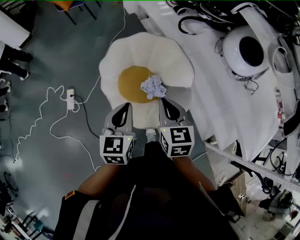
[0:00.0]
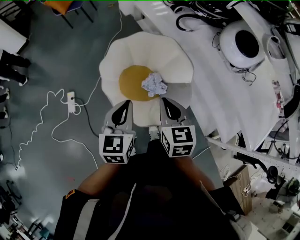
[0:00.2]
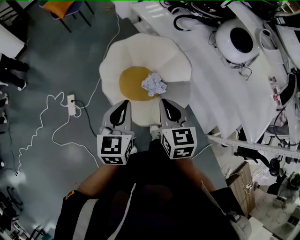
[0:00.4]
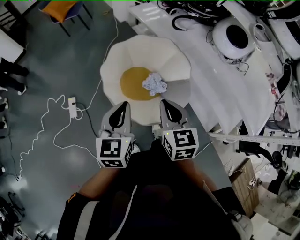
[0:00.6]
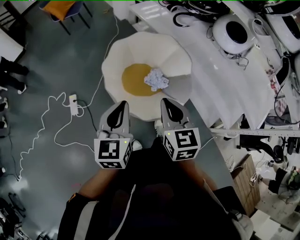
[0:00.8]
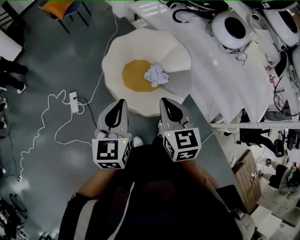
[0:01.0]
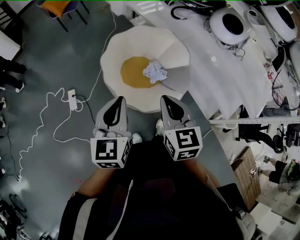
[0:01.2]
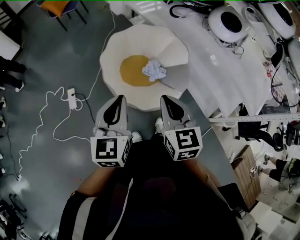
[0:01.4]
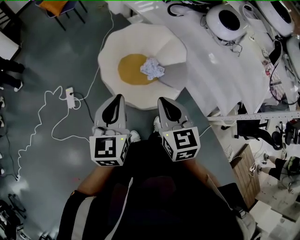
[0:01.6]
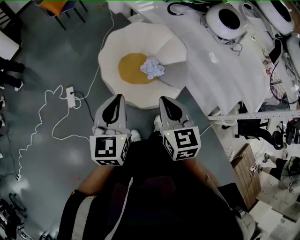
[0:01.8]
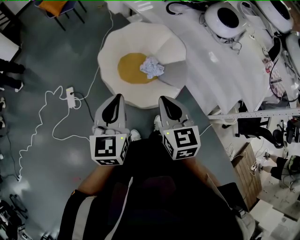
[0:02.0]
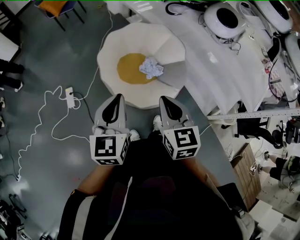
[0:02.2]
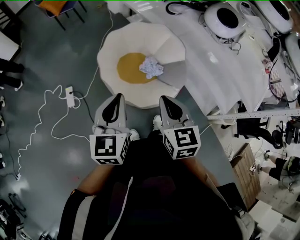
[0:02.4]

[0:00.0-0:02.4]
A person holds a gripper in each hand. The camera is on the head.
0:00.0 to 0:01.2: The grippers both shift backward, to the left and upward by about 25 cm.
0:01.2 to 0:02.4: The grippers make only small movements.

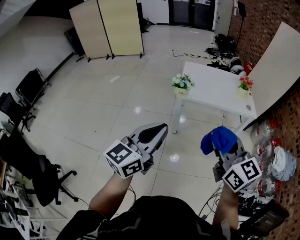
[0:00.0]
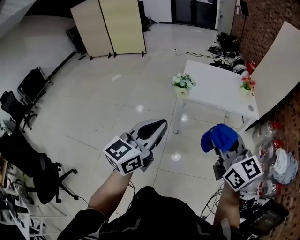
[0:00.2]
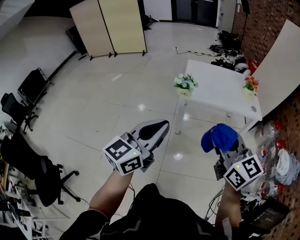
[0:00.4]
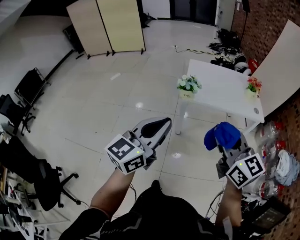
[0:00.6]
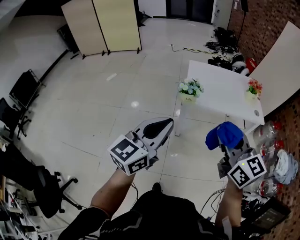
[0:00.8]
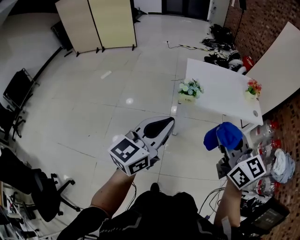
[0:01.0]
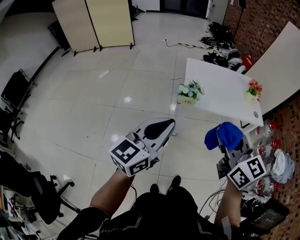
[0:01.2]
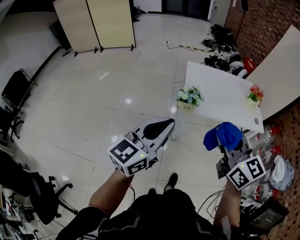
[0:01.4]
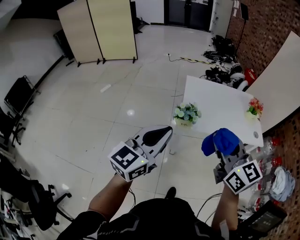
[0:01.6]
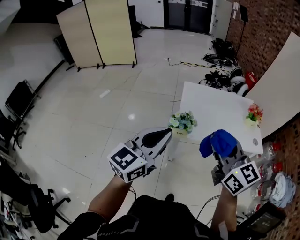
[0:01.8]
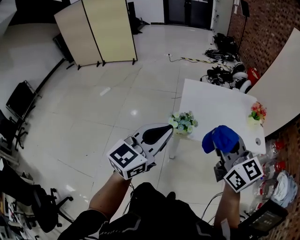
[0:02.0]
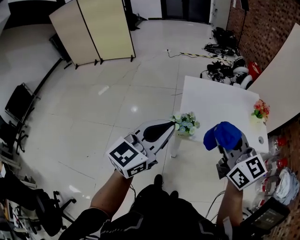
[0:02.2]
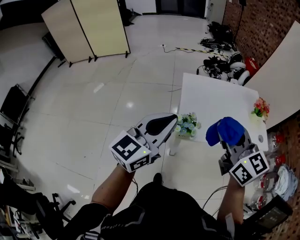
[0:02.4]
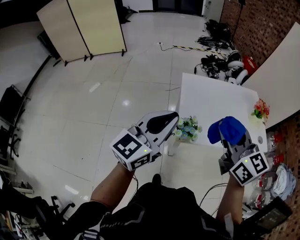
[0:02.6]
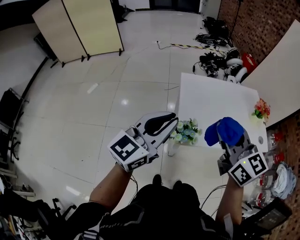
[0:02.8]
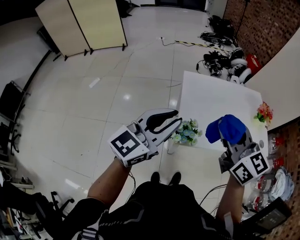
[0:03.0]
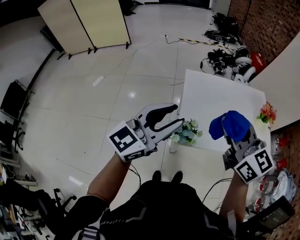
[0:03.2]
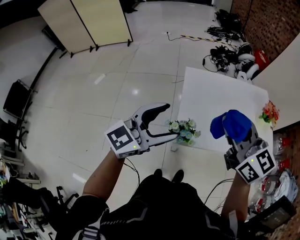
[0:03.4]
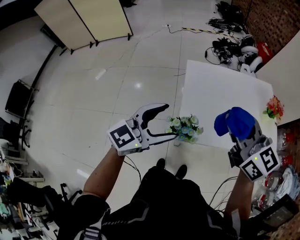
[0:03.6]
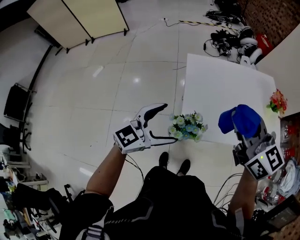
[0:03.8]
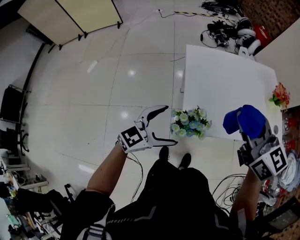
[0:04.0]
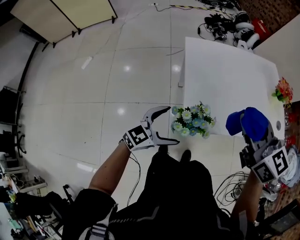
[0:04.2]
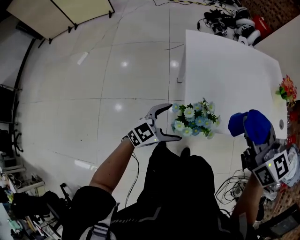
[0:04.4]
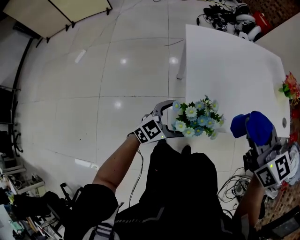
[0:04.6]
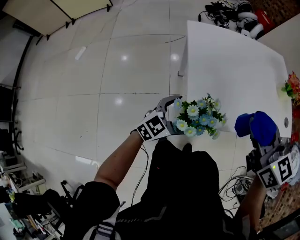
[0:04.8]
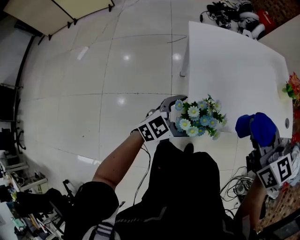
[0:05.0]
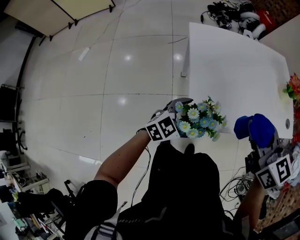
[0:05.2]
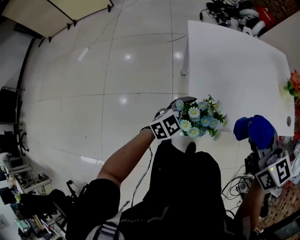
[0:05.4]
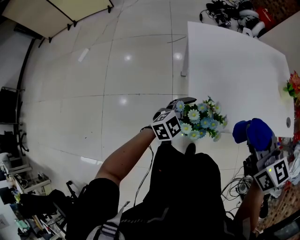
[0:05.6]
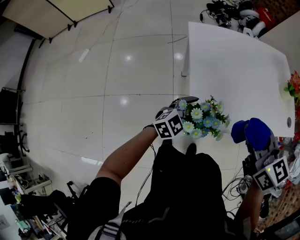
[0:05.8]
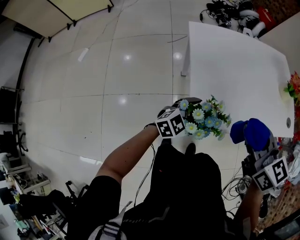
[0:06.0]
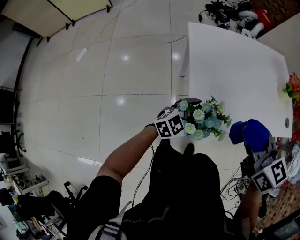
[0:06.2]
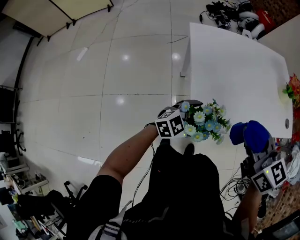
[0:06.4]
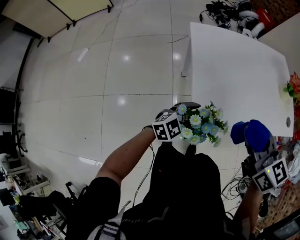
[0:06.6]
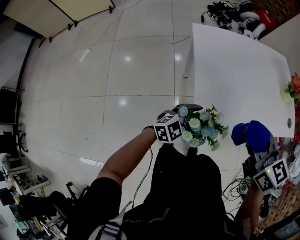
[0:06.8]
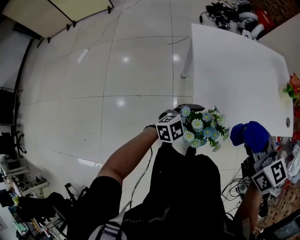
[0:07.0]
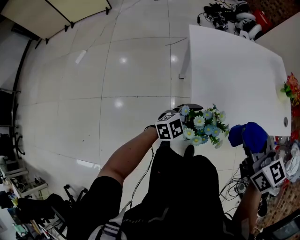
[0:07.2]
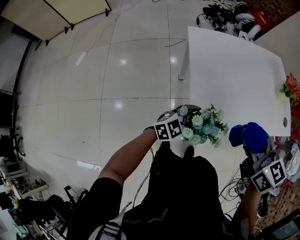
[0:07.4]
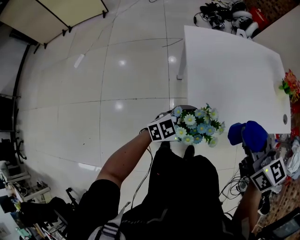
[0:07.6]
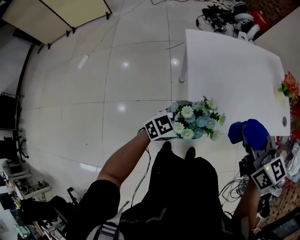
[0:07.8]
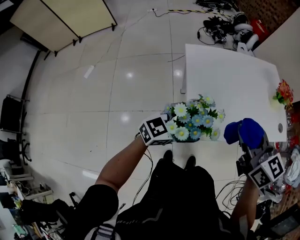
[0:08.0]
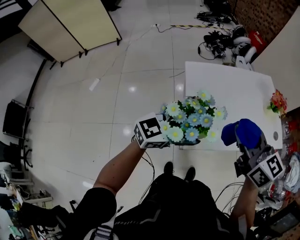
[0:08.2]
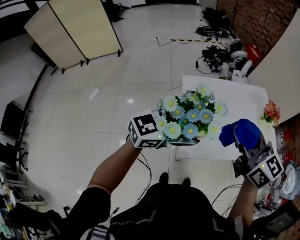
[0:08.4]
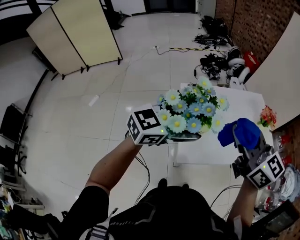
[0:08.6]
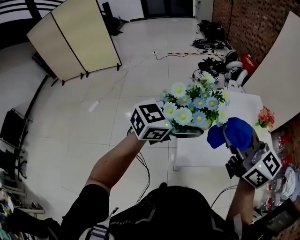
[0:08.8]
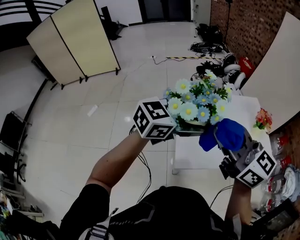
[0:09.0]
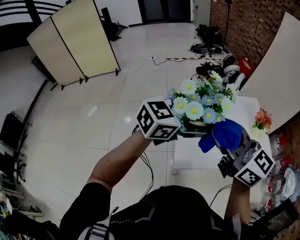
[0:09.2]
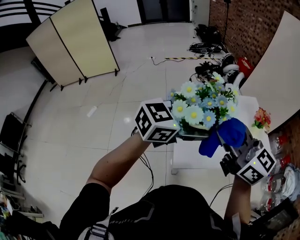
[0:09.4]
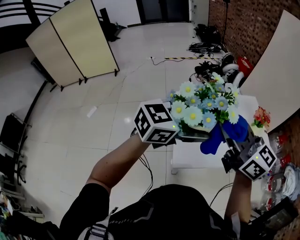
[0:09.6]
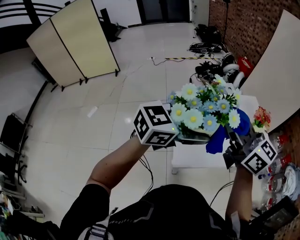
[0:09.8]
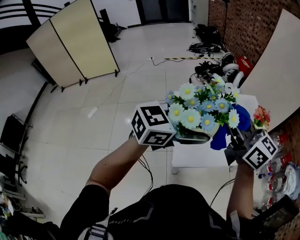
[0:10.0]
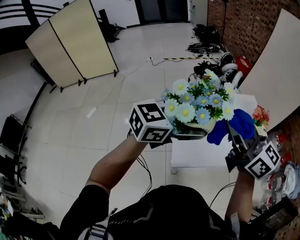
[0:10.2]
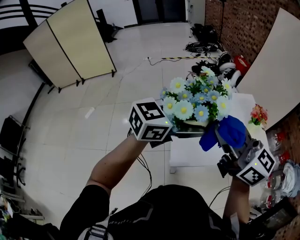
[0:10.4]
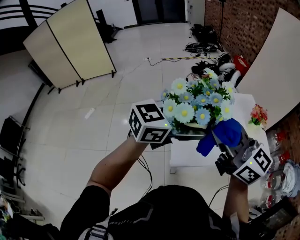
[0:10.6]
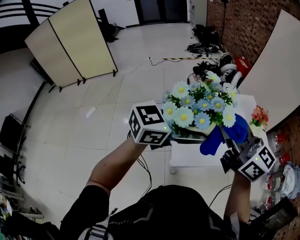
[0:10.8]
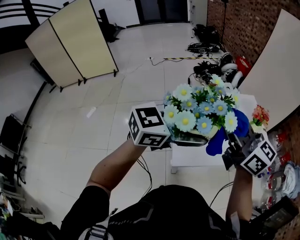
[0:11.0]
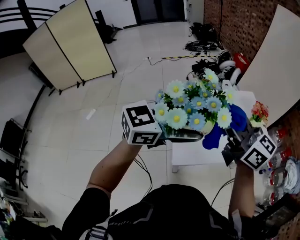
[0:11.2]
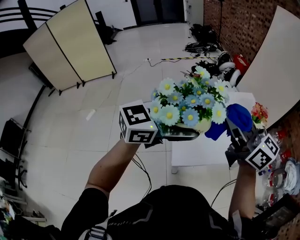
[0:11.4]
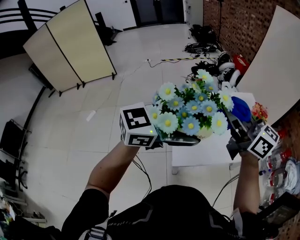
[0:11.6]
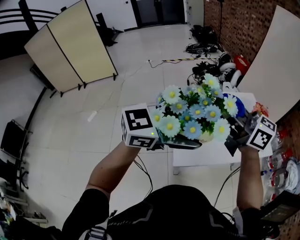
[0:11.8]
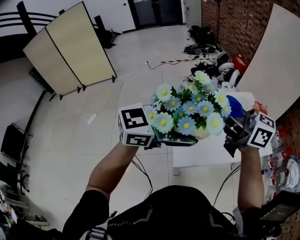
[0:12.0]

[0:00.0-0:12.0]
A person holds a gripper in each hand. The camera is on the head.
0:00.0 to 0:01.6: The grippers both shift forward by about 30 cm.
0:01.6 to 0:03.0: Both grippers travel together forward, roughly 25 cm.
0:03.0 to 0:04.4: The right gripper heads downward and forward, covering roughly 15 cm. The left gripper moves downward, approximately 35 cm, turns by some 30 degrees, and opens up.
0:04.4 to 0:06.0: The right gripper goes some 5 cm downward. Meanwhile the left gripper travels to the right and forward by approximately 10 cm.
0:06.0 to 0:07.6: There are only small adjustments of the grippers.
0:07.6 to 0:09.0: The right gripper heads upward, covering about 25 cm, and turns by approximately 30 degrees, while the left gripper moves upward, some 40 cm.
0:10.4 to 0:12.0: The right gripper moves roughly 10 cm.

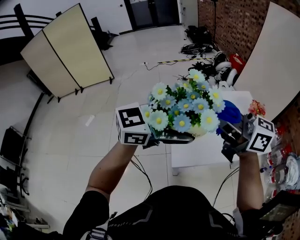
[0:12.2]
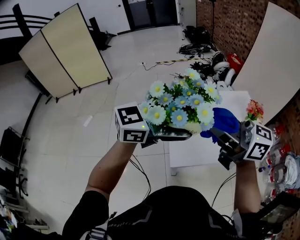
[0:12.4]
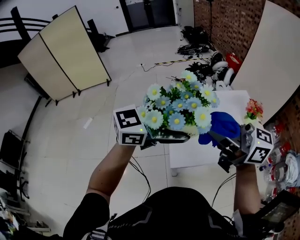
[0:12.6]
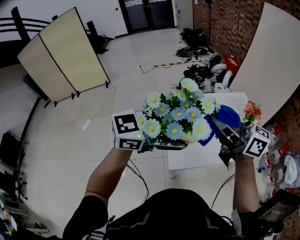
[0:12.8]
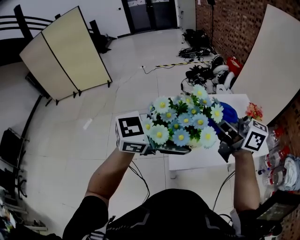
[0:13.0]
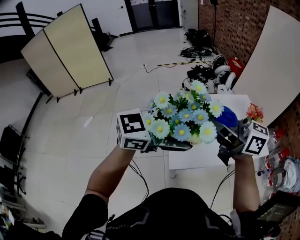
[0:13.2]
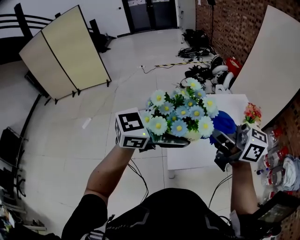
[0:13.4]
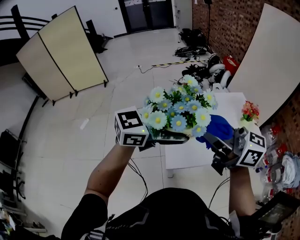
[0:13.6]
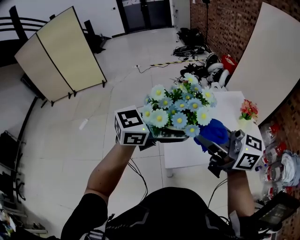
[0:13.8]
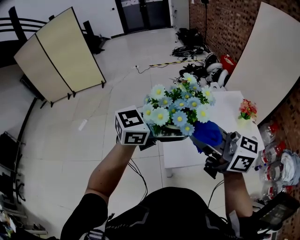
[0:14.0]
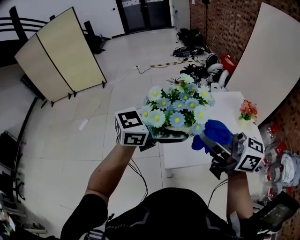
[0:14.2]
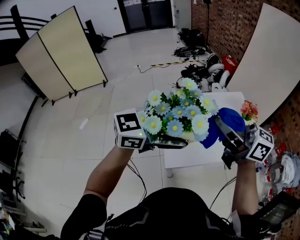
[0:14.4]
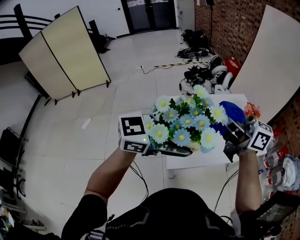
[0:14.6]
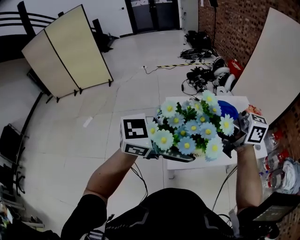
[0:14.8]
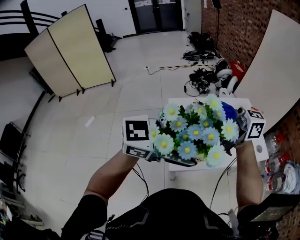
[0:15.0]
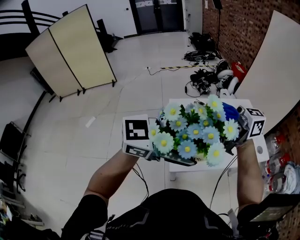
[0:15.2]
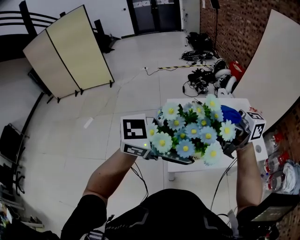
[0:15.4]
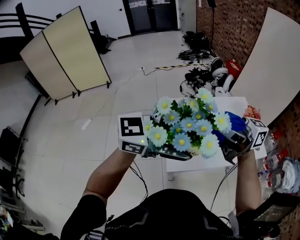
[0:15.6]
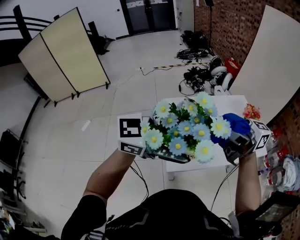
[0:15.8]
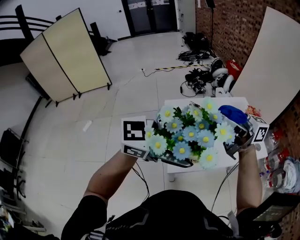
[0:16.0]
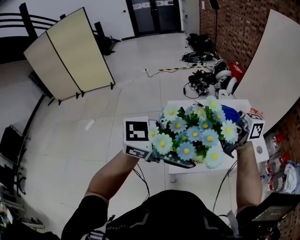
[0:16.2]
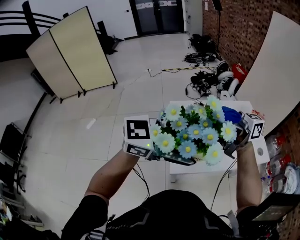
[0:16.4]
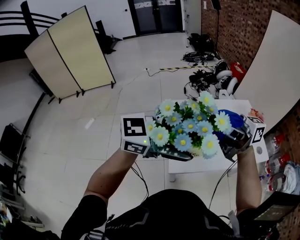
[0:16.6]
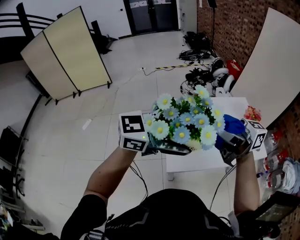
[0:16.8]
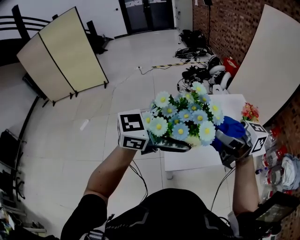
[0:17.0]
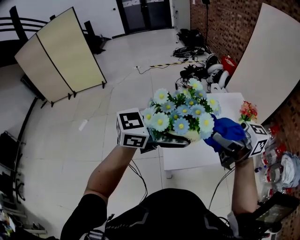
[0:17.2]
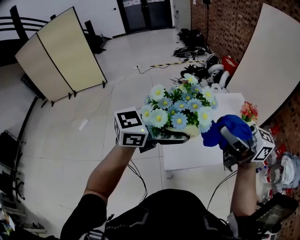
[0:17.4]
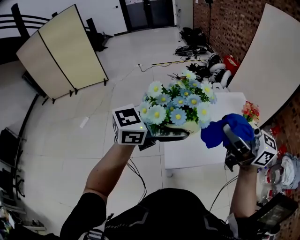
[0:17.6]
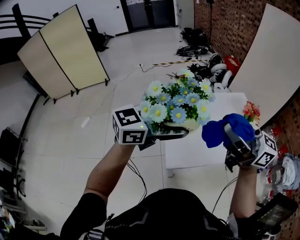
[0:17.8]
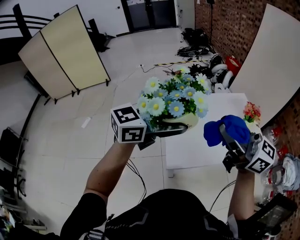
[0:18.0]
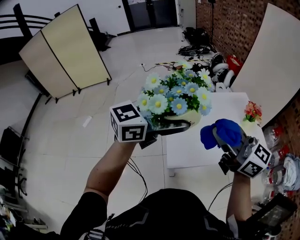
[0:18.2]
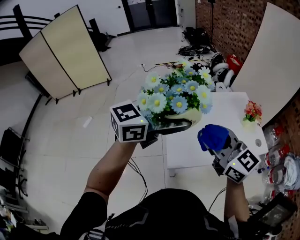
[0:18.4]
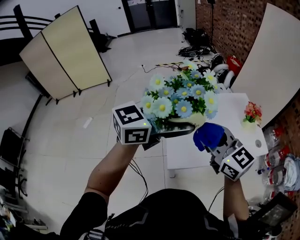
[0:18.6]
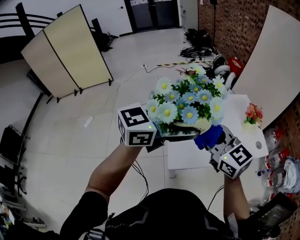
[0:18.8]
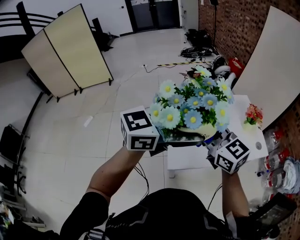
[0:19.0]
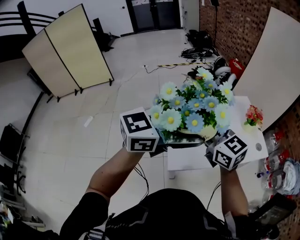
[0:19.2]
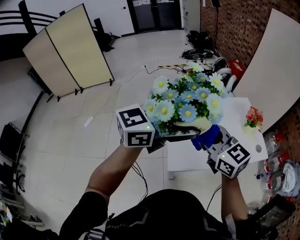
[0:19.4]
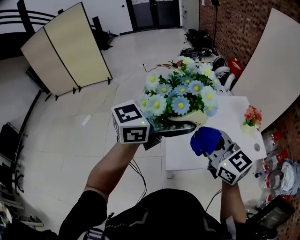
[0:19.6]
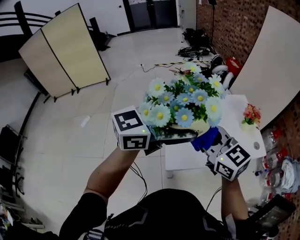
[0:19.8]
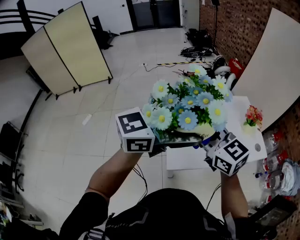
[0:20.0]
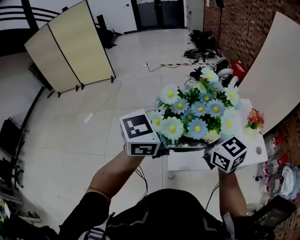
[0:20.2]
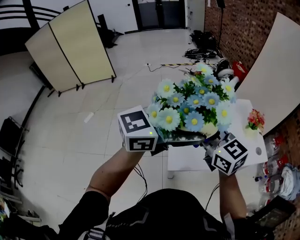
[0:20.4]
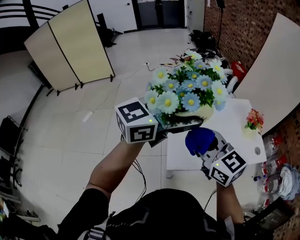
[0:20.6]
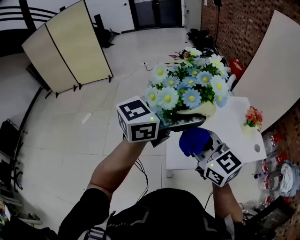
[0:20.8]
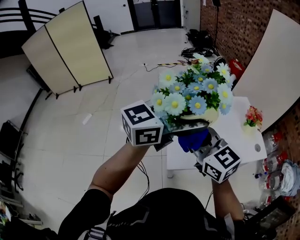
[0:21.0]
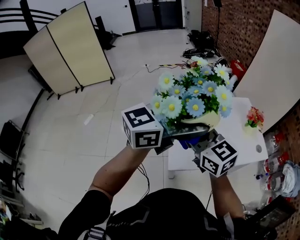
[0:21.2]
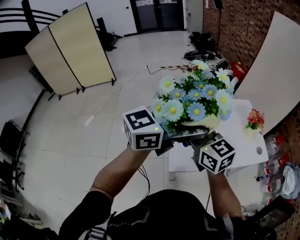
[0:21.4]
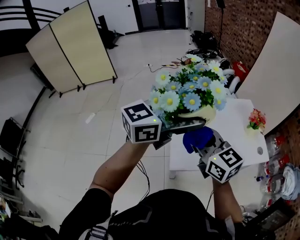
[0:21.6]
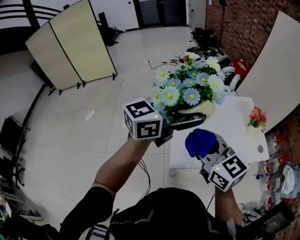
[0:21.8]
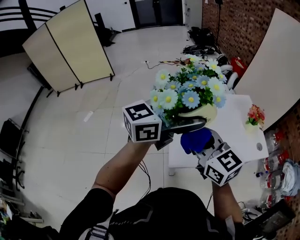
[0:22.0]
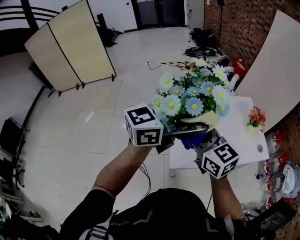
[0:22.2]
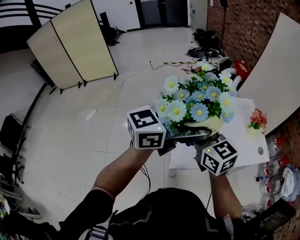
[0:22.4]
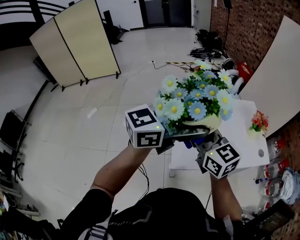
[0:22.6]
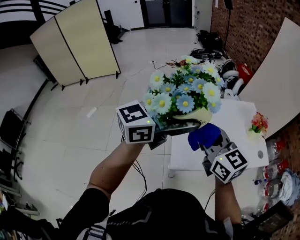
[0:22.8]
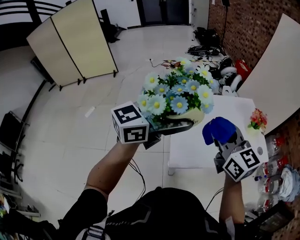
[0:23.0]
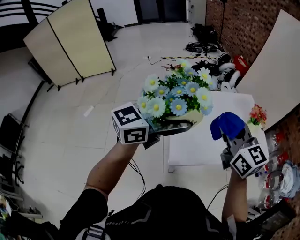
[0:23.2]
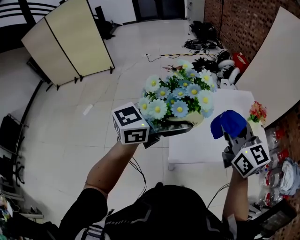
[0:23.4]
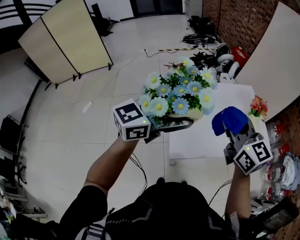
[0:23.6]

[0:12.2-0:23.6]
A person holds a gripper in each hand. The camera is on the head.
0:12.2 to 0:13.6: The right gripper ends up some 5 cm from where it was.
0:13.6 to 0:15.0: The right gripper changes its angle by approximately 20 degrees. The left gripper ends up about 10 cm from where it was.
0:16.4 to 0:17.8: The left gripper moves some 10 cm. The right gripper ends up approximately 5 cm from where it was, and turns by roughly 30 degrees.
0:17.8 to 0:19.4: The right gripper moves downward, roughly 10 cm, and changes its angle by some 40 degrees.
0:19.4 to 0:20.8: The grippers move only a little.
0:20.8 to 0:22.2: The right gripper goes forward and backward, some 5 cm each way, reversing 2 times.
0:22.2 to 0:23.6: The left gripper changes place by approximately 5 cm, while the right gripper goes roughly 10 cm to the right.
